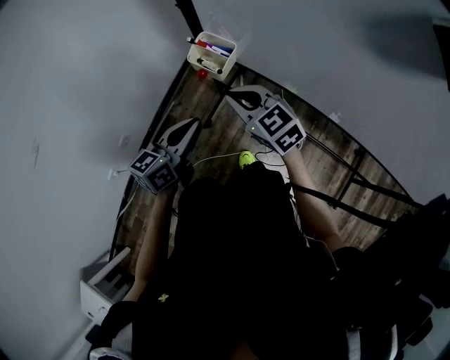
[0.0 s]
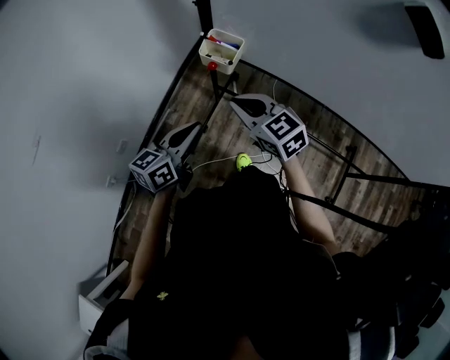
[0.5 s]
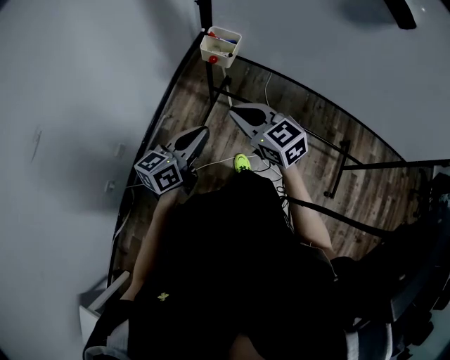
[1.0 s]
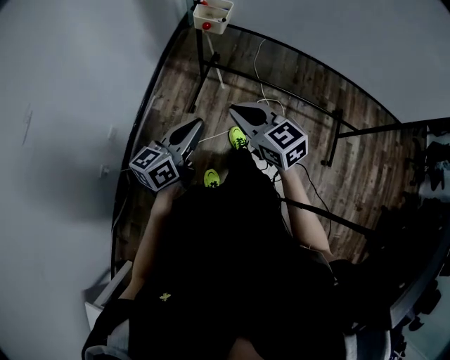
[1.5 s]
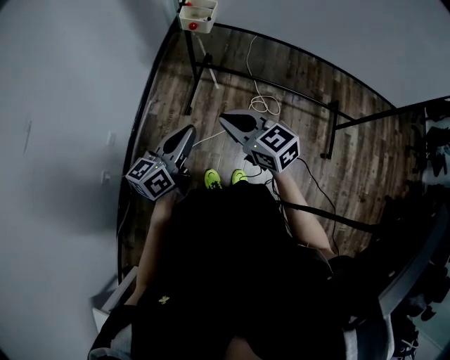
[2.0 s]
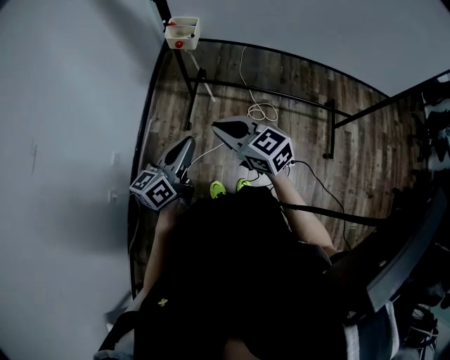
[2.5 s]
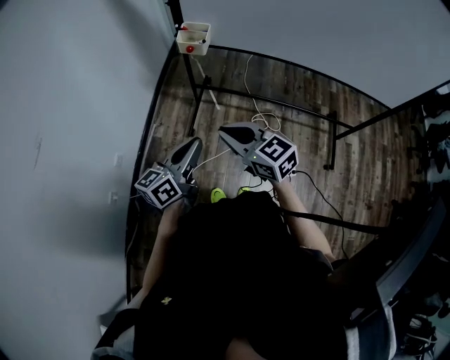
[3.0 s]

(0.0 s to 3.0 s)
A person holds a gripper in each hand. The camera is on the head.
0.0 s - 1.5 s: Both grippers travel together backward, roughly 25 cm.
1.5 s - 3.0 s: The right gripper ends up roughly 5 cm from where it was.

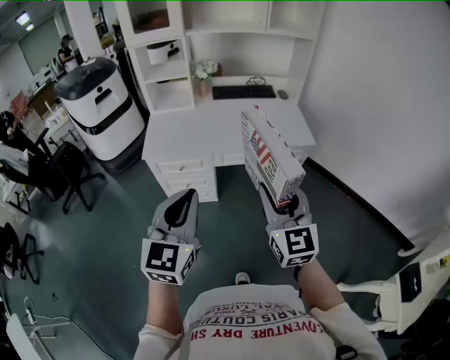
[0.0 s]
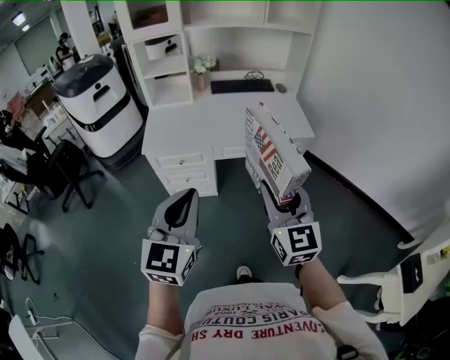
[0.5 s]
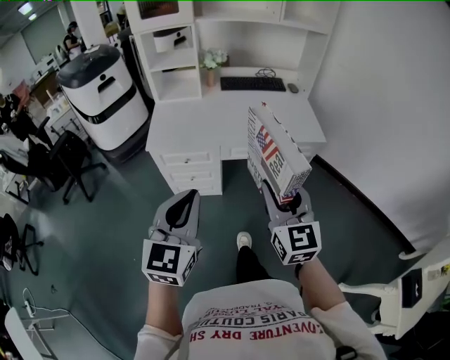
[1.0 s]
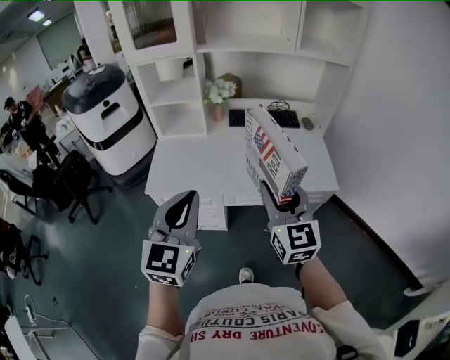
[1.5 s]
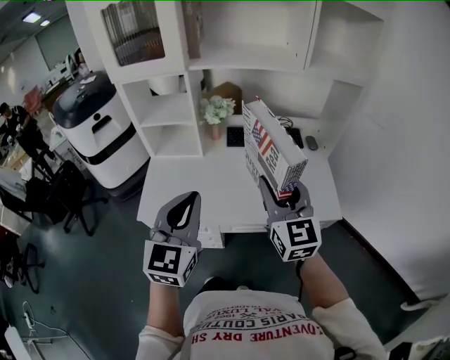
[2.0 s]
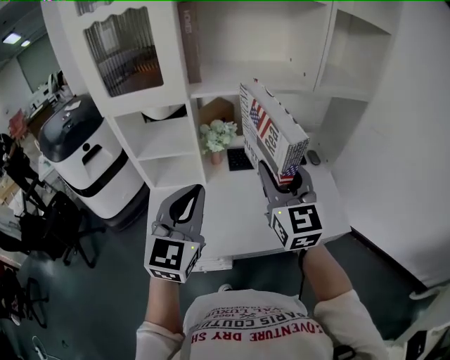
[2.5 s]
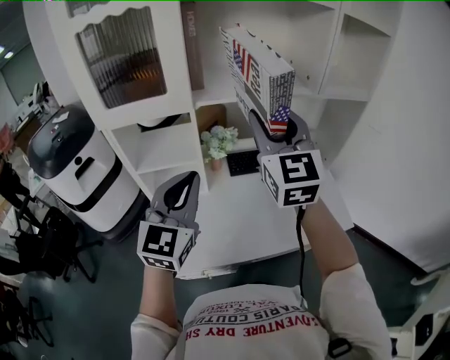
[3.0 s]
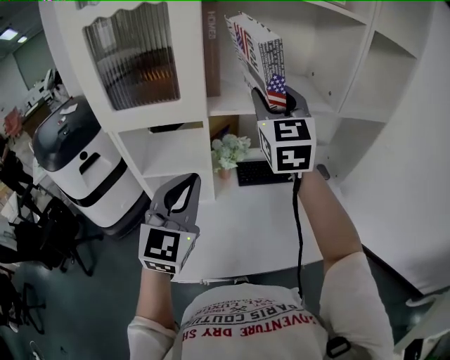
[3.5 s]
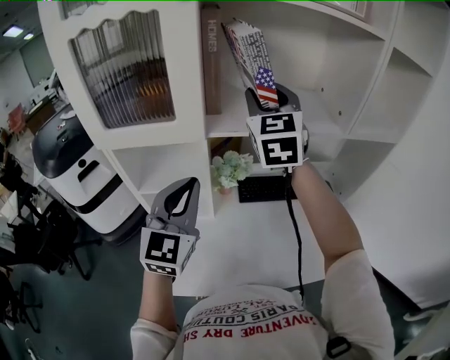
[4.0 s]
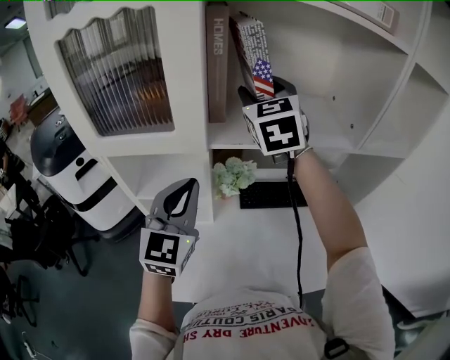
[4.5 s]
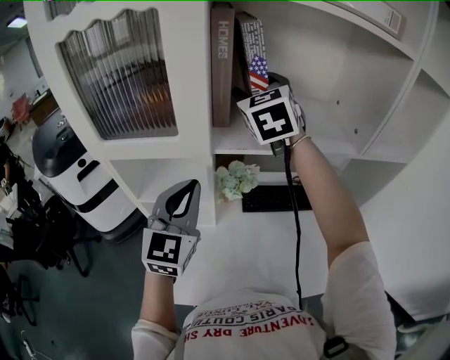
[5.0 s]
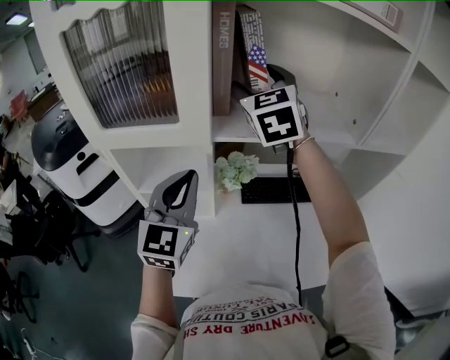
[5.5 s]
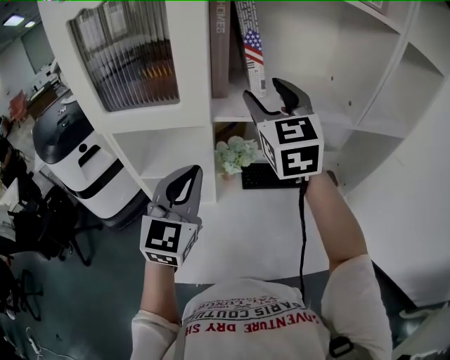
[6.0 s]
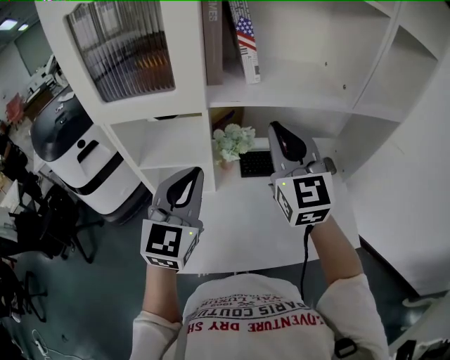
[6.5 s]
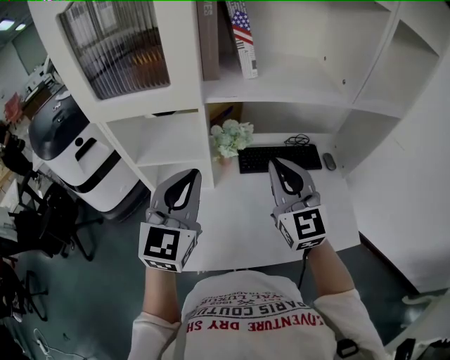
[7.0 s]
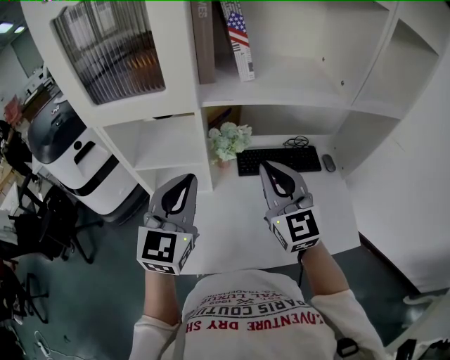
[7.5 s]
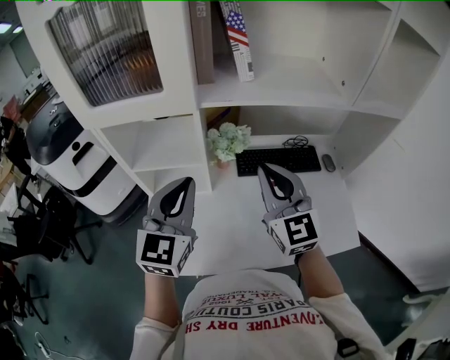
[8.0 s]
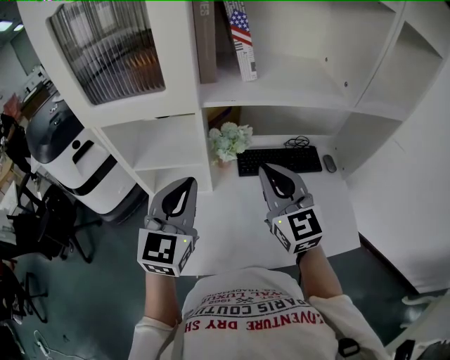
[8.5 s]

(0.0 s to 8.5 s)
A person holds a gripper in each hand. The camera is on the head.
0.0 s - 2.0 s: The two grippers go roughly 40 cm forward.
2.0 s - 4.0 s: The left gripper goes approximately 30 cm forward and to the left, while the right gripper travels forward, upward and to the left by some 50 cm.
4.0 s - 6.5 s: The right gripper goes approximately 15 cm backward and downward, and closes up.
6.5 s - 8.5 s: The right gripper moves downward, roughly 10 cm.

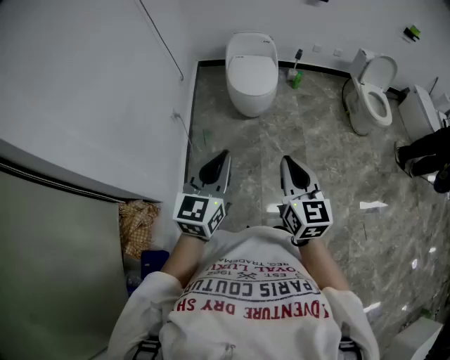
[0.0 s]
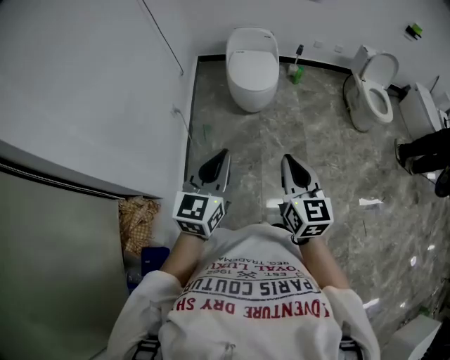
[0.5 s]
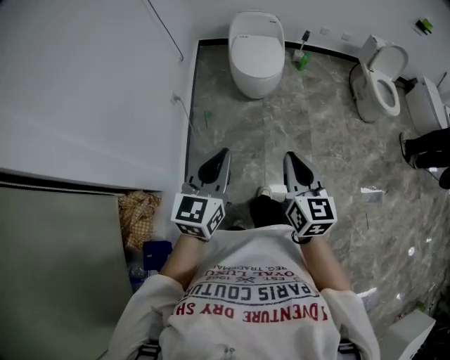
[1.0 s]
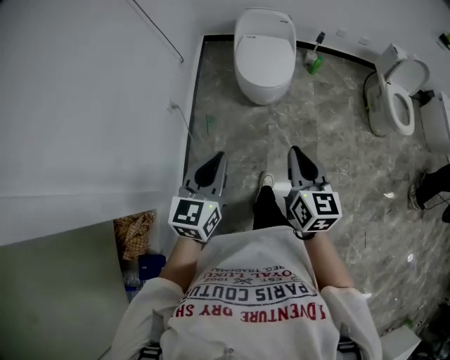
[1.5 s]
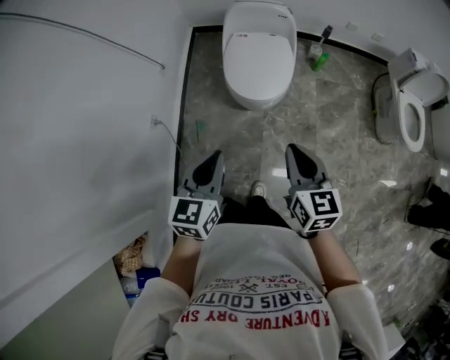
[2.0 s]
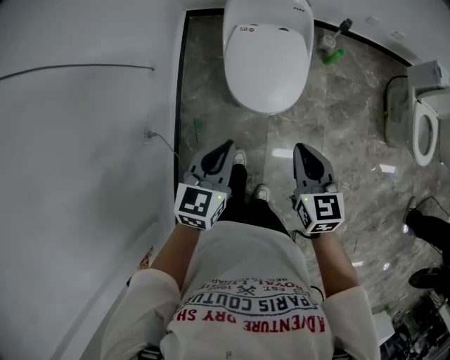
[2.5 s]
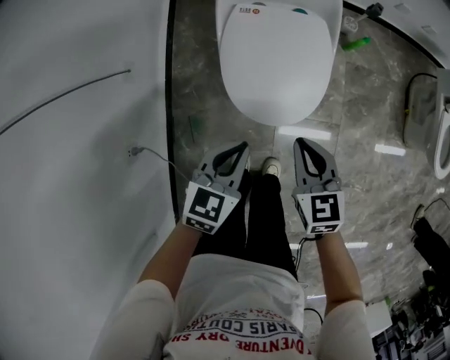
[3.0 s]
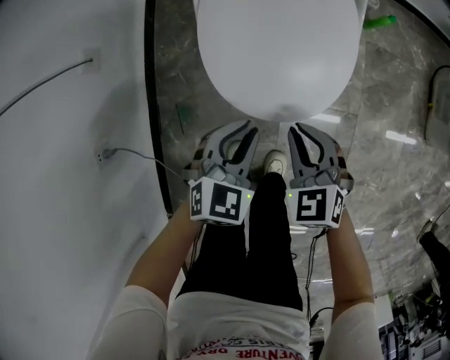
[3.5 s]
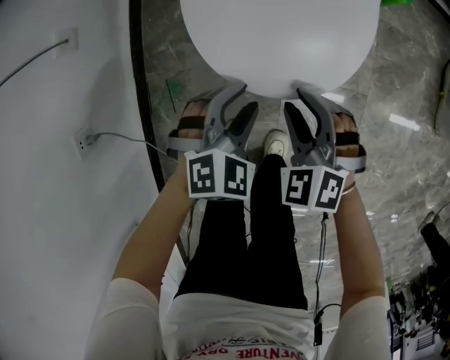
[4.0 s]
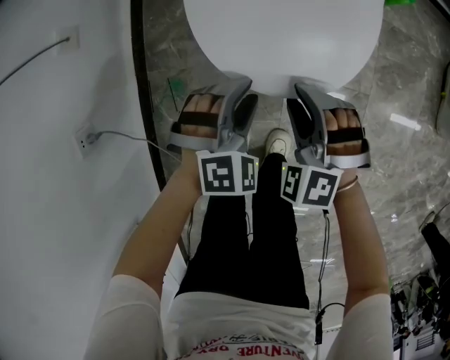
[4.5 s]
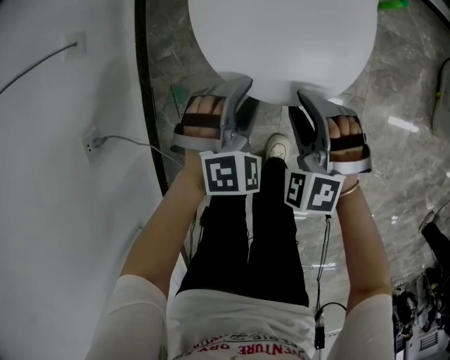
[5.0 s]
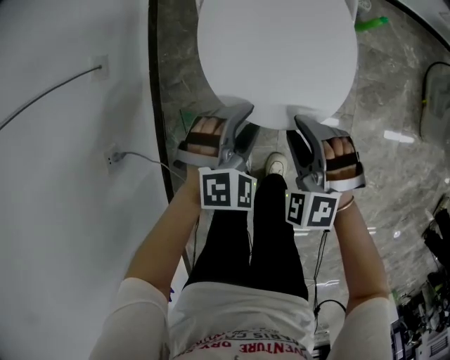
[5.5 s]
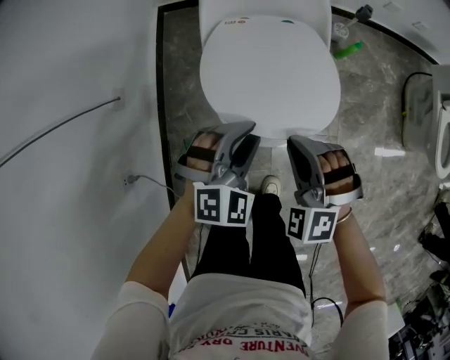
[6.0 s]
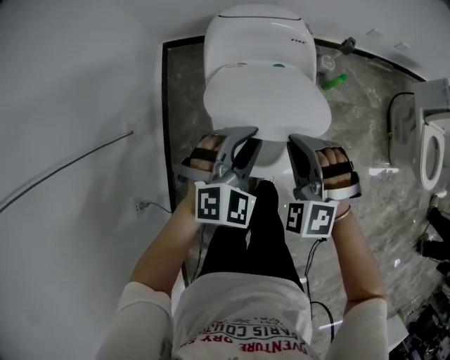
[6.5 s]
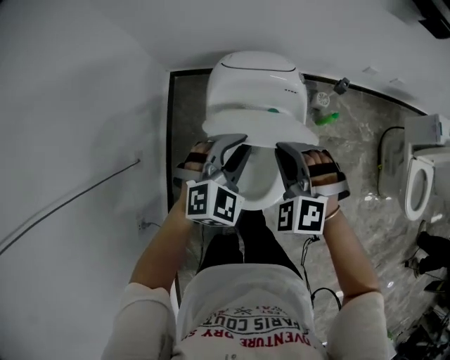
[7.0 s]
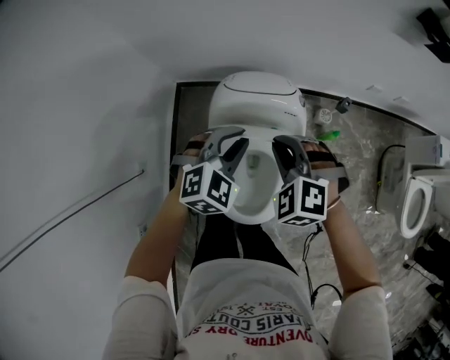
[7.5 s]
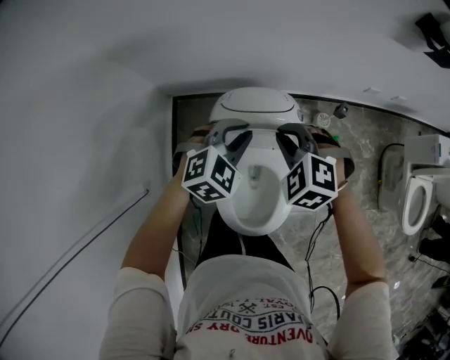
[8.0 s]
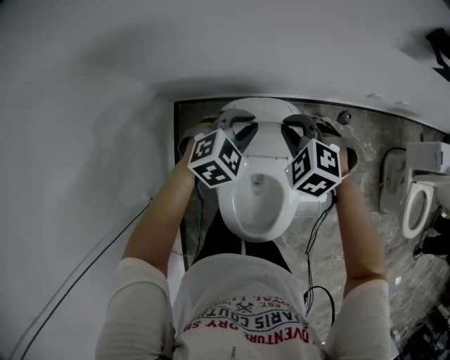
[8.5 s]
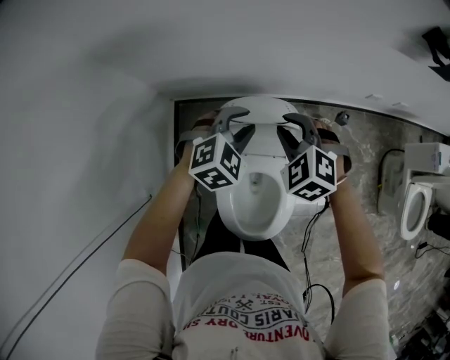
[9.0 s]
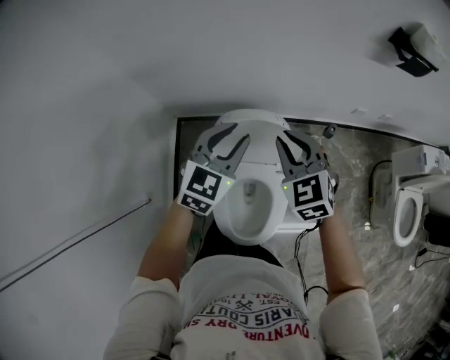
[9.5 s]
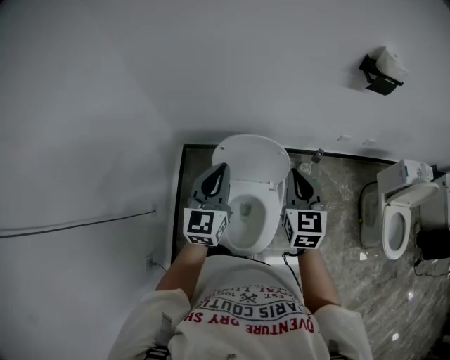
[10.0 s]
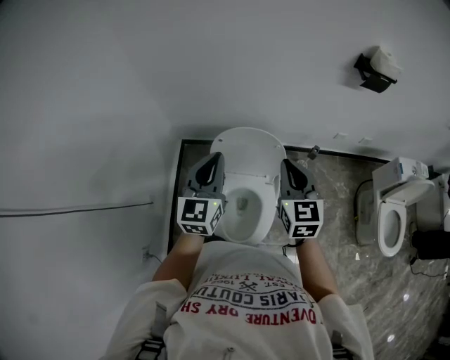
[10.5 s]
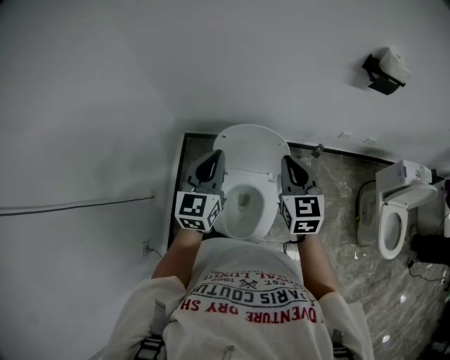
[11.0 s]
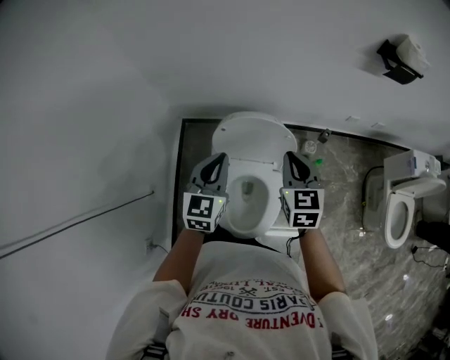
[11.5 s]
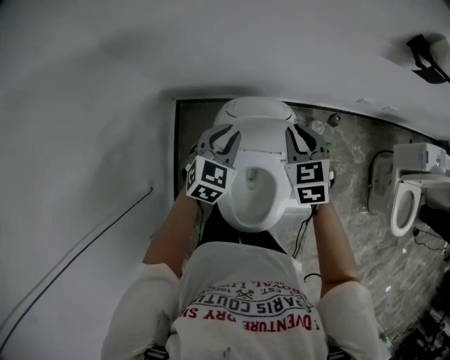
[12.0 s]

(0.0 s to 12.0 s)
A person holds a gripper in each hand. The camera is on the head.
0.0 s - 2.0 s: The pair of grippers is taken forward, approximately 40 cm.
2.0 s - 4.0 s: The grippers both shift downward and forward by roughly 60 cm. The right gripper rotates around the line of its fingers by approximately 50 degrees, counterclockwise from behind, and opens up, while the left gripper rolls clockwise, seen from behind, by about 50 degrees, and opens up.
4.0 s - 6.0 s: The two grippers go about 25 cm upward. The right gripper changes its angle by about 20 degrees.
6.0 s - 8.0 s: Both grippers move forward and upward, approximately 40 cm.
8.0 s - 10.0 s: The left gripper heads upward and backward, covering roughly 25 cm, and angles its fingers upward, by approximately 40 degrees. Meanwhile the right gripper travels upward, backward and to the right by approximately 25 cm, and tilts its fingers roughly 40 degrees upward.
10.0 s - 12.0 s: The left gripper travels downward and forward by some 25 cm, and angles its fingers downward, by approximately 30 degrees. The right gripper is displaced forward and downward by some 20 cm, and rotates approximately 20 degrees.

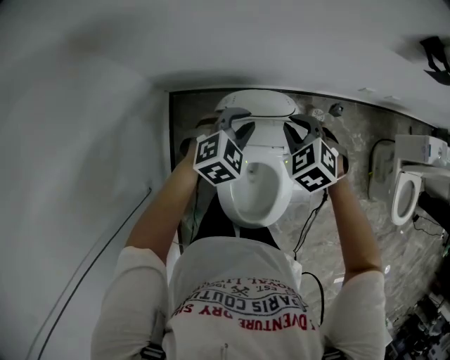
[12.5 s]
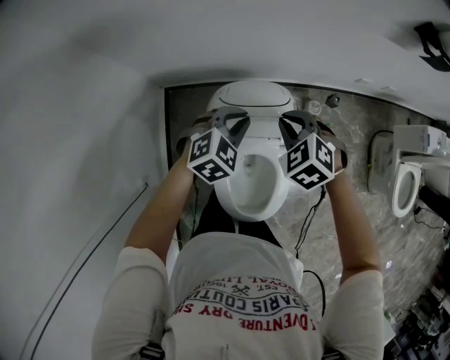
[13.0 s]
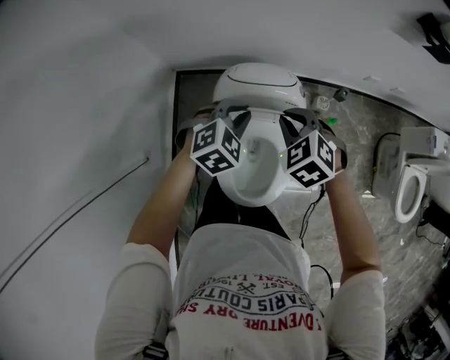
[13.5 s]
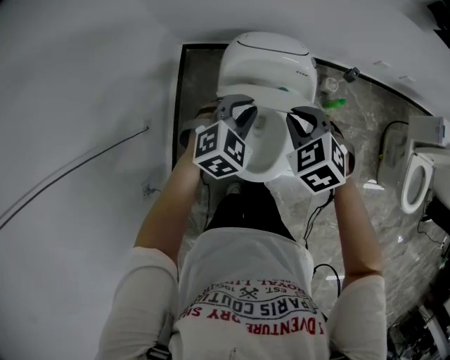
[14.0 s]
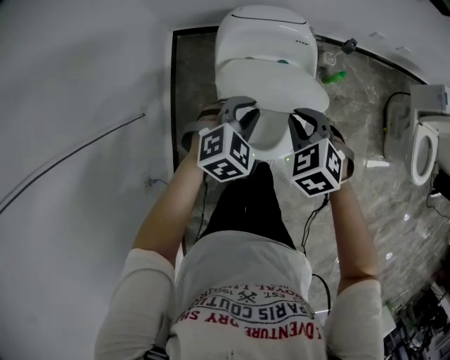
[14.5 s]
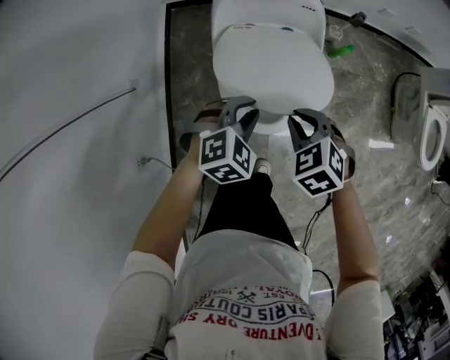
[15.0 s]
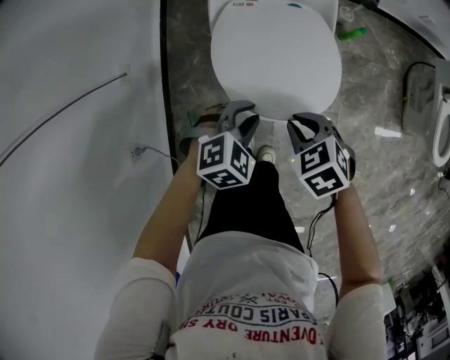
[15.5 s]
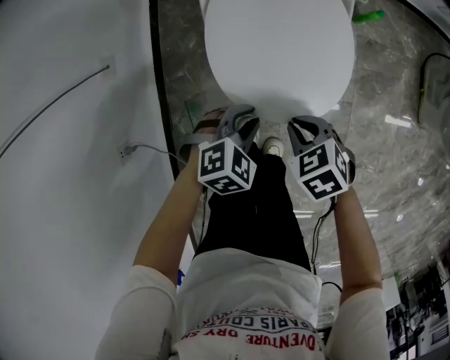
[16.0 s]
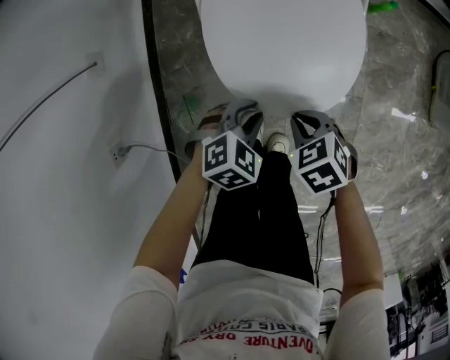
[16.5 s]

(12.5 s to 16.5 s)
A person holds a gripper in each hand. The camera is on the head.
12.5 s - 14.5 s: Both grippers move backward, approximately 30 cm.
14.5 s - 16.5 s: Both grippers move downward and backward, some 40 cm. The right gripper swivels roughly 30 degrees.
